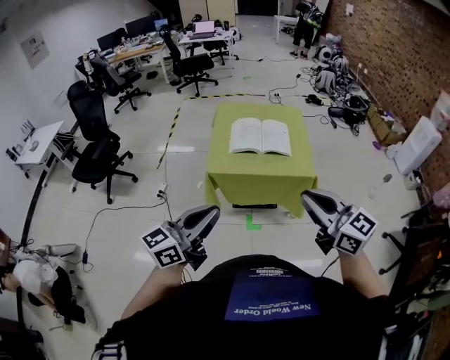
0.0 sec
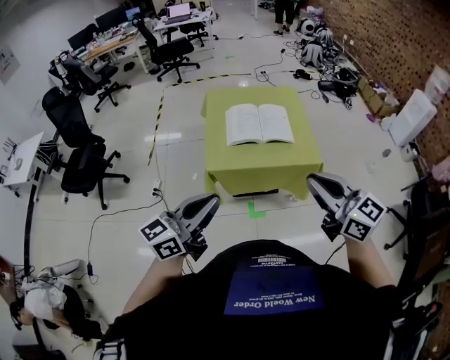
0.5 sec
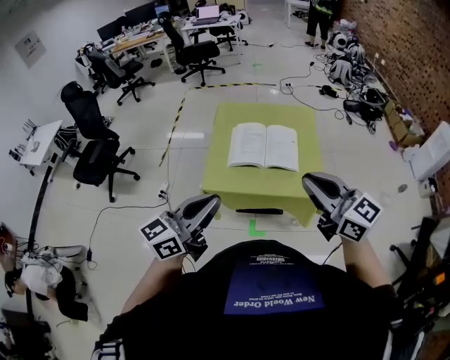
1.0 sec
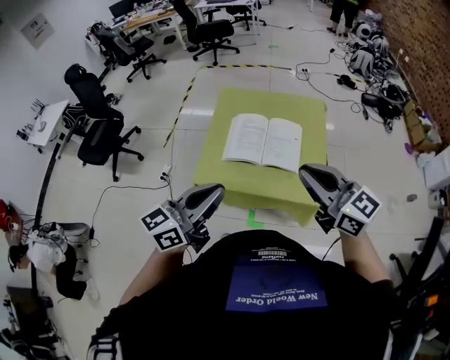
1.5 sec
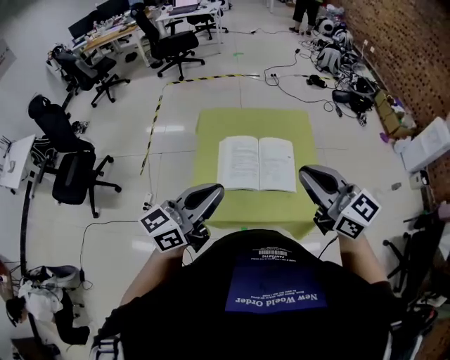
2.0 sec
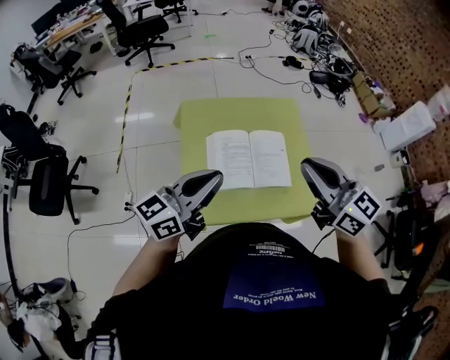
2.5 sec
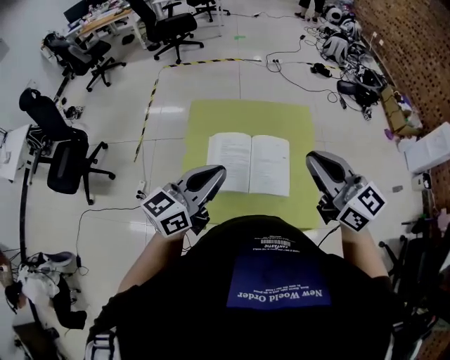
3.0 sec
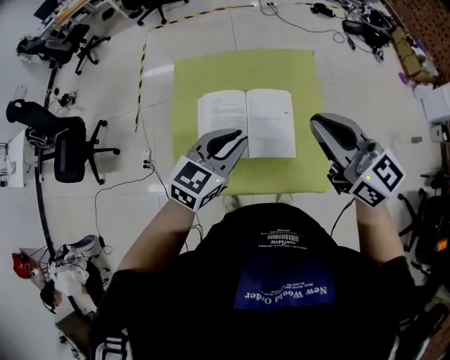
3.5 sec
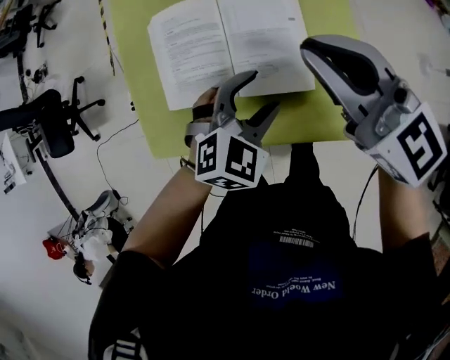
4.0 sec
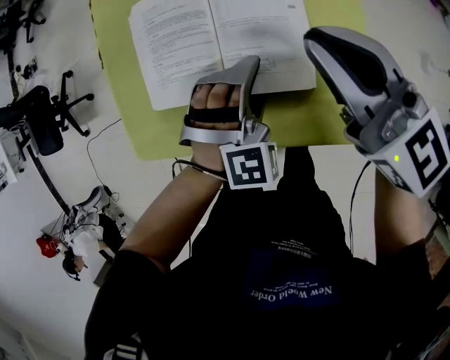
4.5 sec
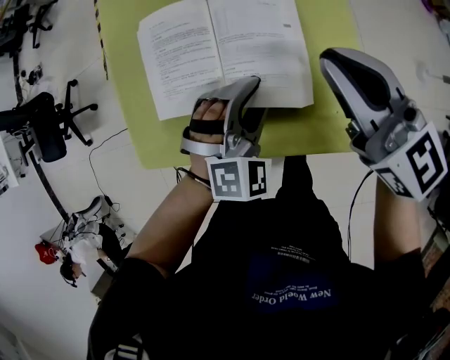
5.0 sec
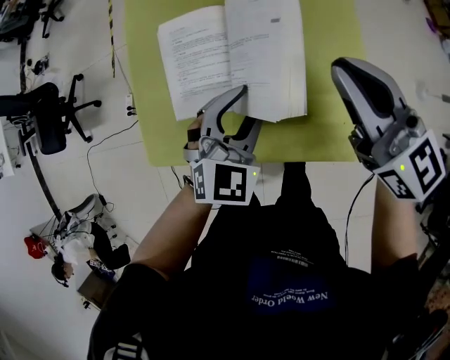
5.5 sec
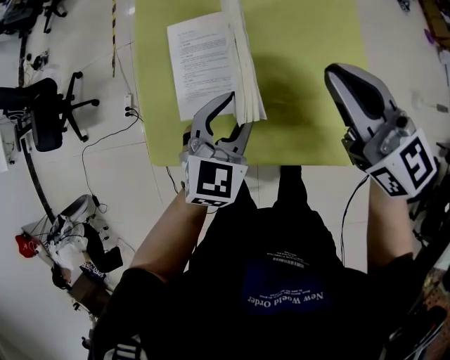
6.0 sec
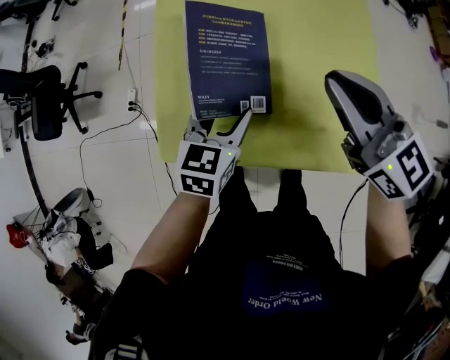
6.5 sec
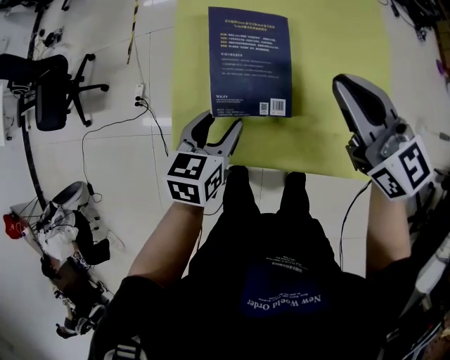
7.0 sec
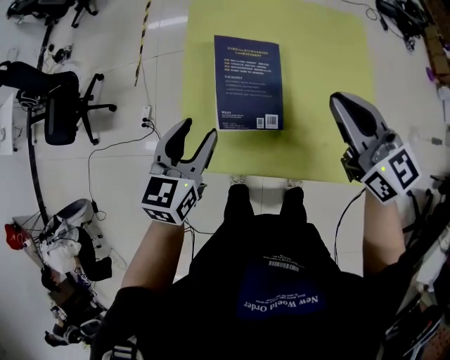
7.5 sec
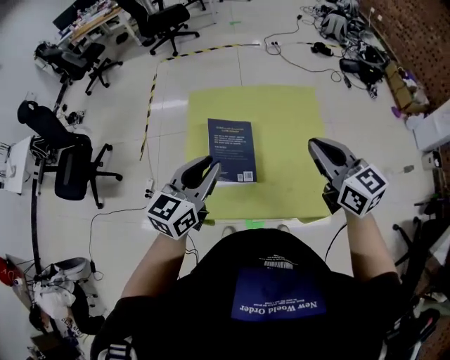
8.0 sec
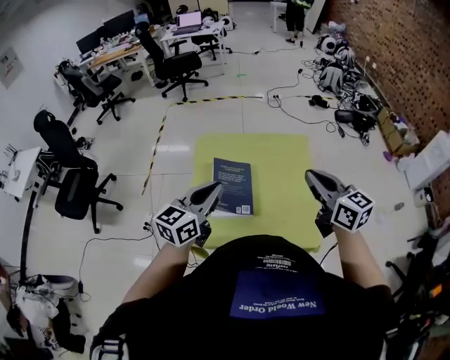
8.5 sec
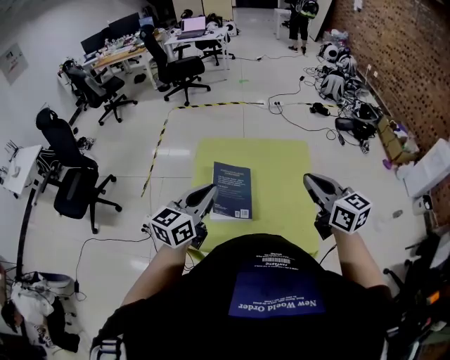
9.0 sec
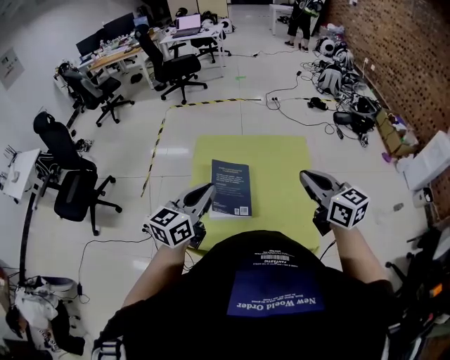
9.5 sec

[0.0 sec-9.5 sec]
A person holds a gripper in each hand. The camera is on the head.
0.0 sec to 2.0 sec: Both grippers travel together forward, about 40 cm.
2.0 sec to 4.0 sec: The right gripper shifts some 25 cm downward and forward. The left gripper goes some 40 cm downward, to the right and forward, points its fingers about 50 degrees further downward, and opens.
4.0 sec to 5.5 sec: The left gripper changes its angle by about 20 degrees, and closes up.
5.5 sec to 7.5 sec: The right gripper moves to the left, about 10 cm; the left gripper moves to the left, some 20 cm, and changes its angle by roughly 30 degrees.
7.5 sec to 9.5 sec: The right gripper is displaced upward and to the right by approximately 15 cm. Meanwhile the left gripper goes approximately 20 cm upward, swivels about 30 degrees, and closes up.

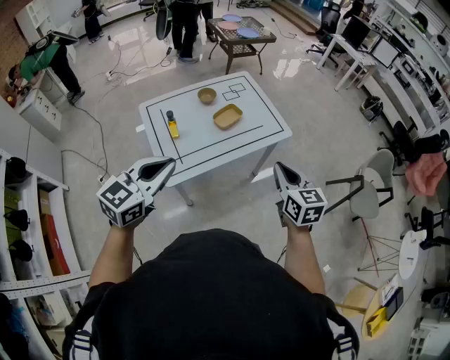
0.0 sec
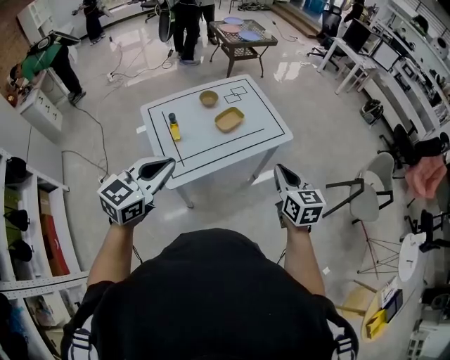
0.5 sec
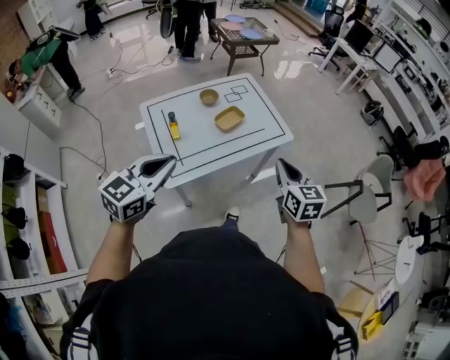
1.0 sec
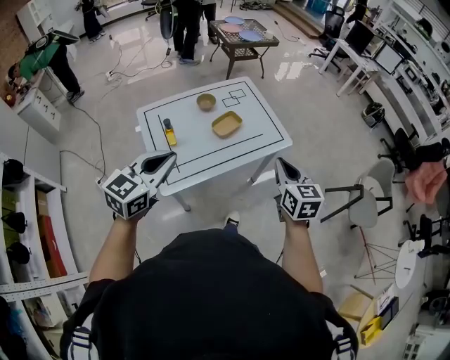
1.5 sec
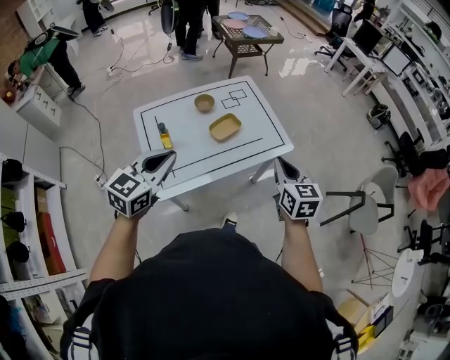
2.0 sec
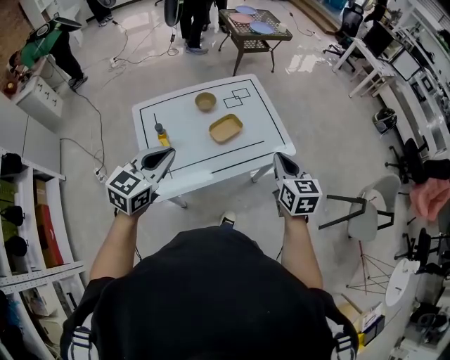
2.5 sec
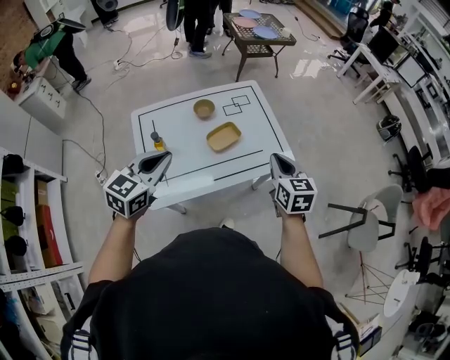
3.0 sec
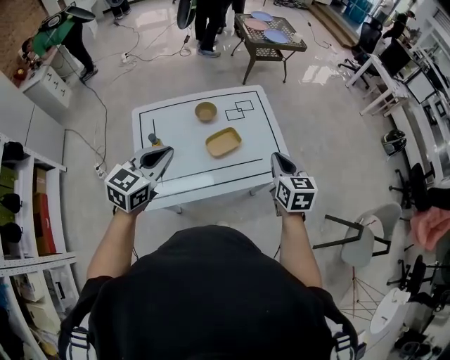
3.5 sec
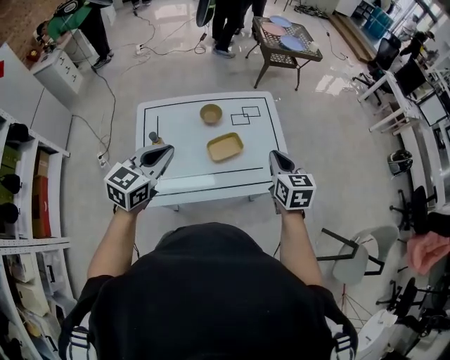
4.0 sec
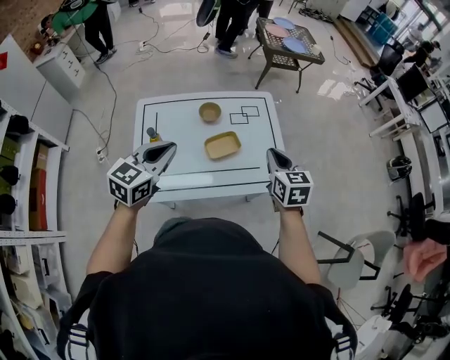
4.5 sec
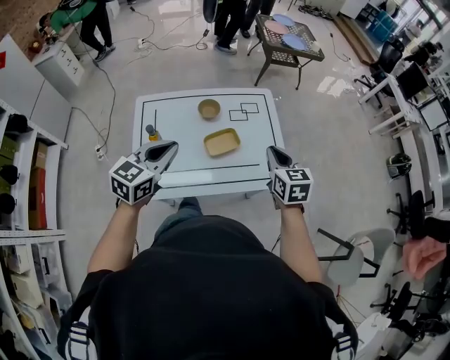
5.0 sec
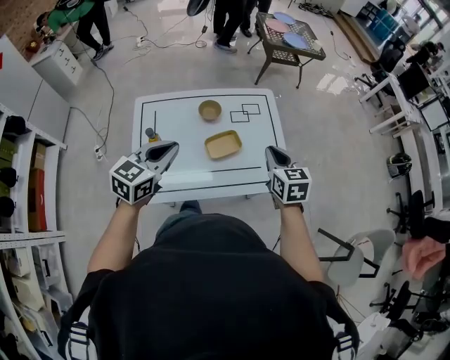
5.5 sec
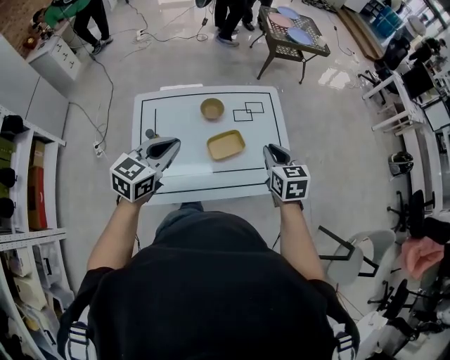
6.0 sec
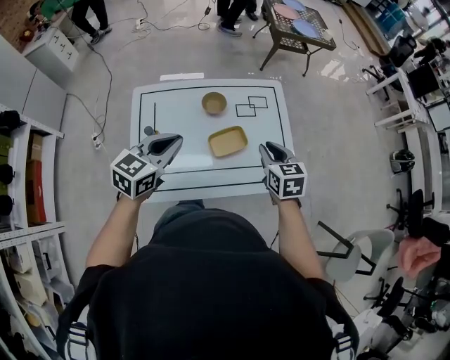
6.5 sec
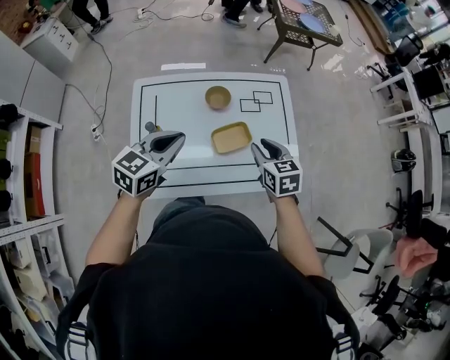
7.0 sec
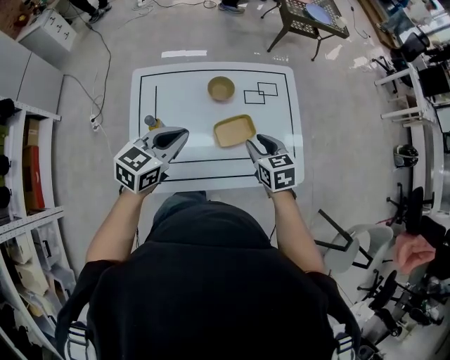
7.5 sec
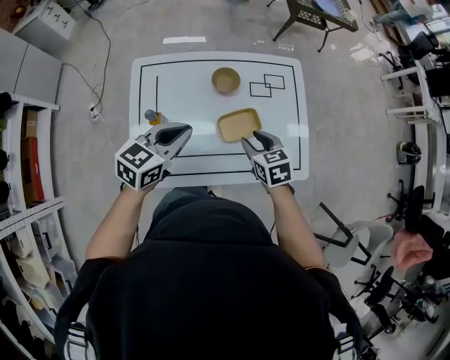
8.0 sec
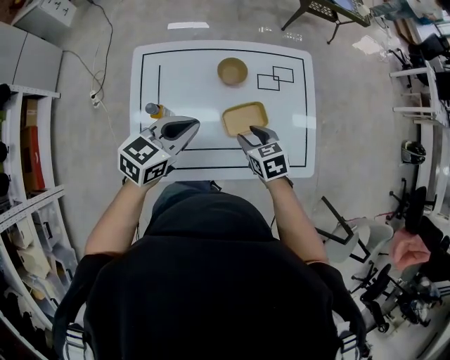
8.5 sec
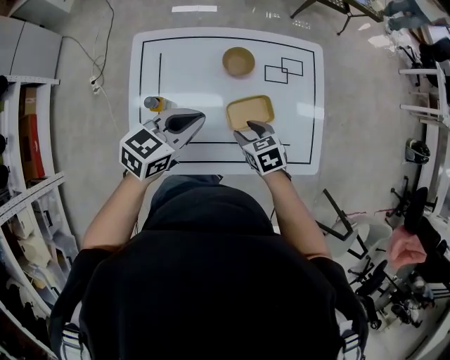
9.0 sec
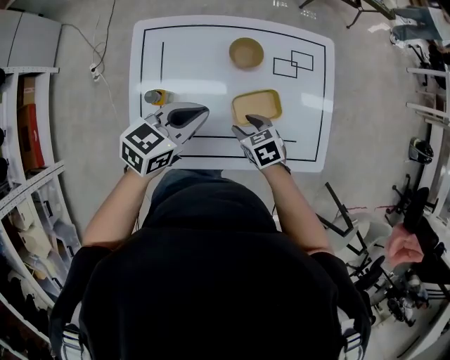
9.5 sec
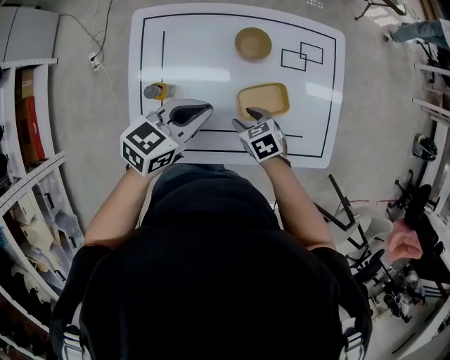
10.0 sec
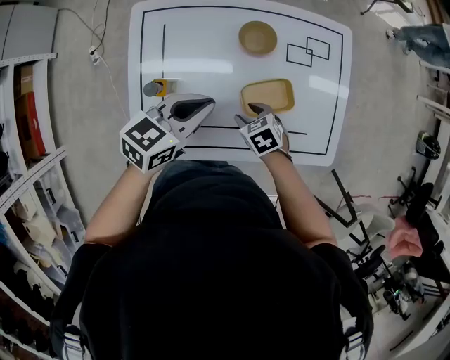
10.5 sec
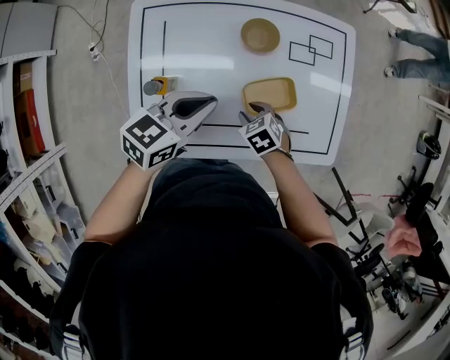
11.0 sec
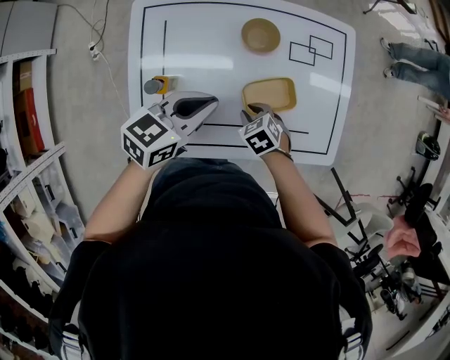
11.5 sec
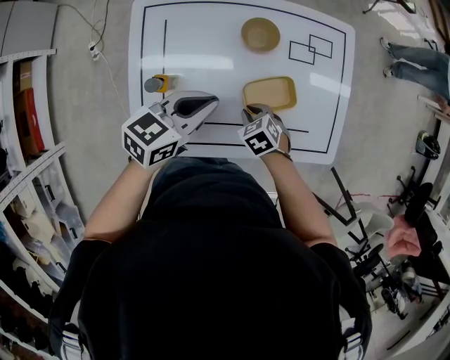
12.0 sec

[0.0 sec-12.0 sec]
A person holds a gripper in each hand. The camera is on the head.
0.0 sec to 2.0 sec: The grippers both shift forward by approximately 15 cm.
2.0 sec to 4.0 sec: The right gripper goes roughly 20 cm forward. The left gripper is displaced forward by some 15 cm.
4.0 sec to 6.0 sec: The right gripper ends up roughly 5 cm from where it was, while the left gripper moves roughly 5 cm.
6.0 sec to 8.0 sec: The left gripper moves downward, about 10 cm. Meanwhile the right gripper travels downward and to the left by roughly 15 cm, rotates some 20 degrees, and opens its fingers.
8.0 sec to 10.0 sec: The right gripper travels downward and to the left by roughly 15 cm, and changes its angle by about 20 degrees; the left gripper travels downward by approximately 10 cm.
10.0 sec to 12.0 sec: The right gripper closes up.

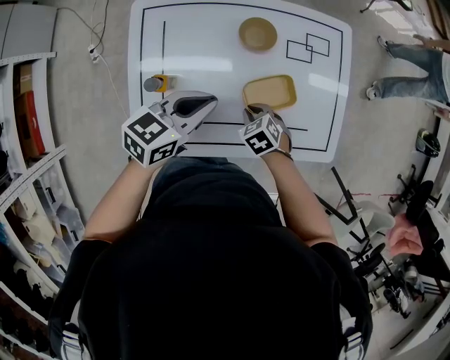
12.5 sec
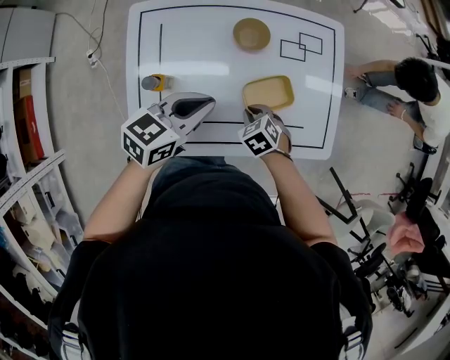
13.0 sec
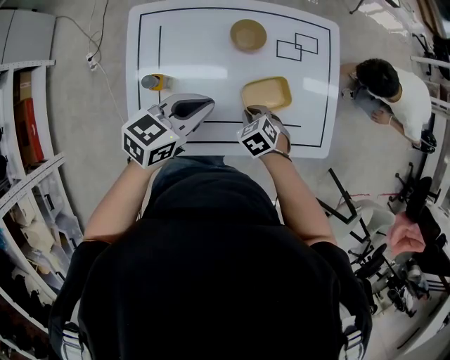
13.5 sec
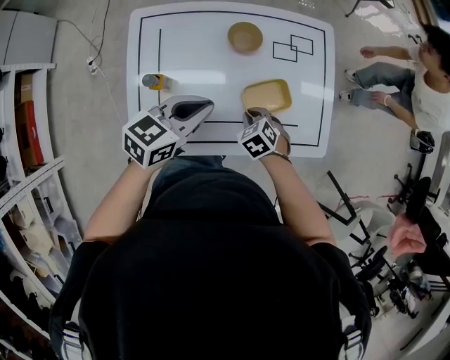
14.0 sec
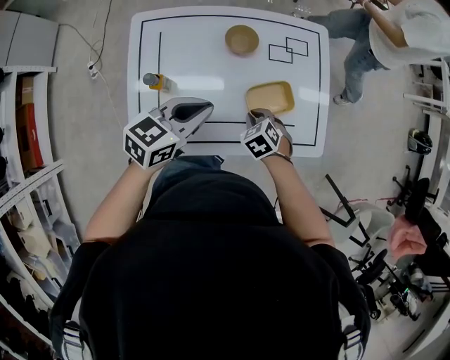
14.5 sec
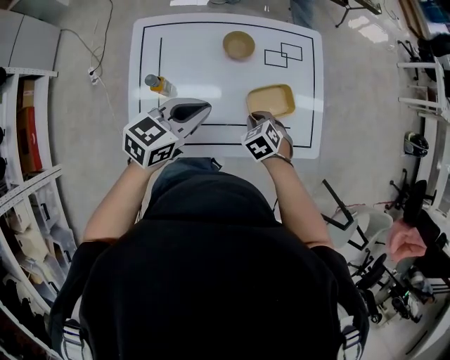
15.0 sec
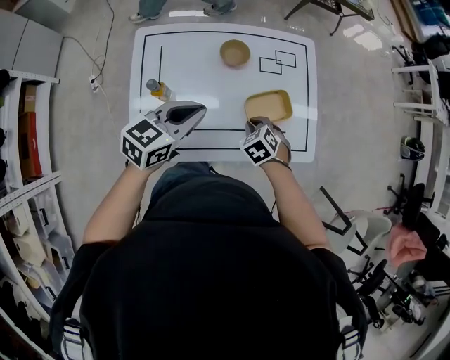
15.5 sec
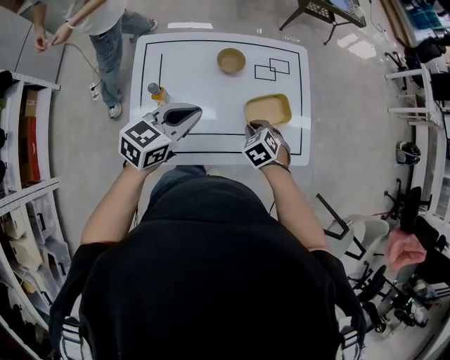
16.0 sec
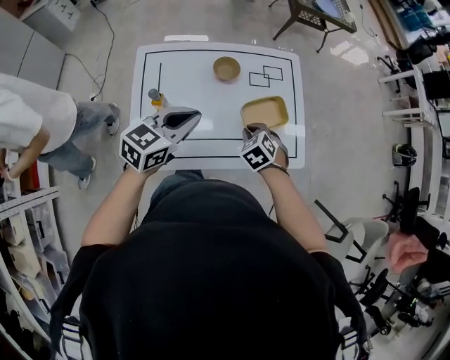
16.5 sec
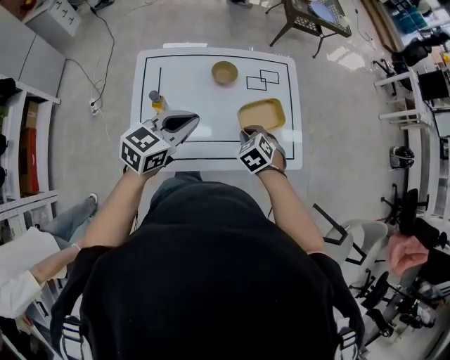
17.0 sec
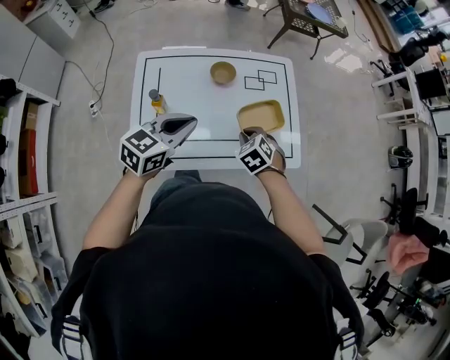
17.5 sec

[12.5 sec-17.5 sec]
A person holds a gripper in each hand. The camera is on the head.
12.5 sec to 15.0 sec: The right gripper shifts approximately 10 cm upward and to the right, while the left gripper is displaced upward by some 5 cm.
15.0 sec to 17.5 sec: The left gripper travels upward and backward by about 10 cm; the right gripper shifts some 10 cm upward.
